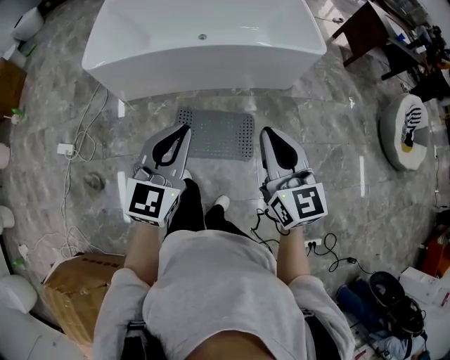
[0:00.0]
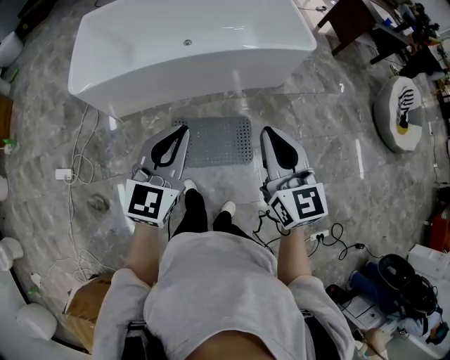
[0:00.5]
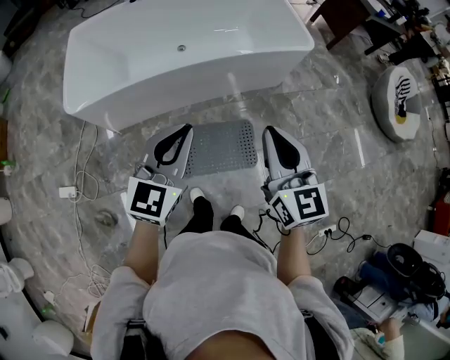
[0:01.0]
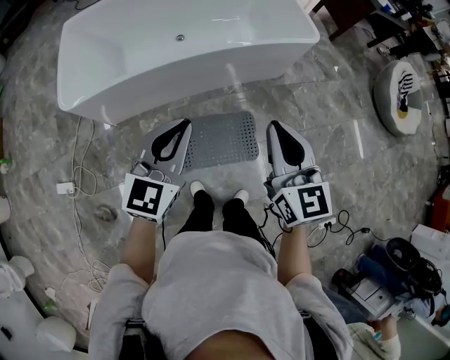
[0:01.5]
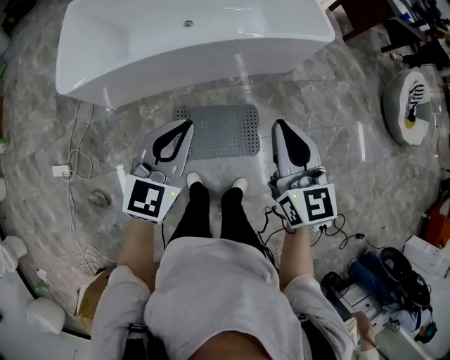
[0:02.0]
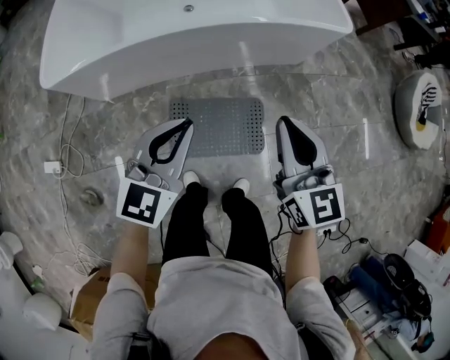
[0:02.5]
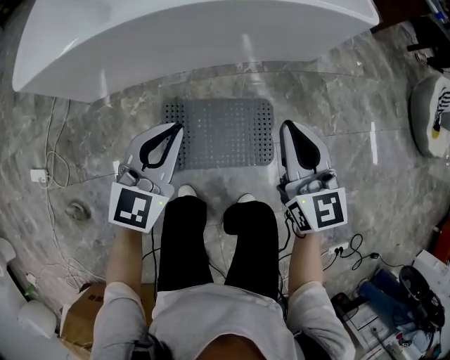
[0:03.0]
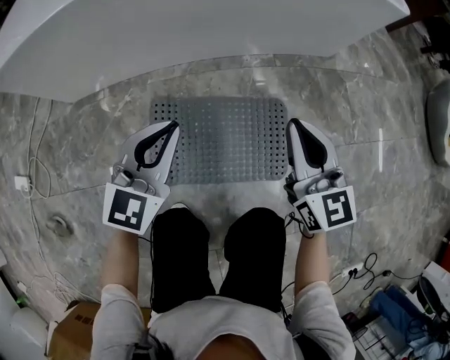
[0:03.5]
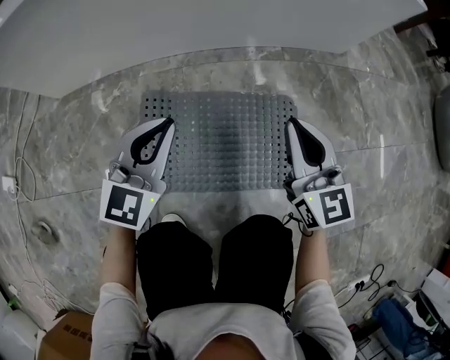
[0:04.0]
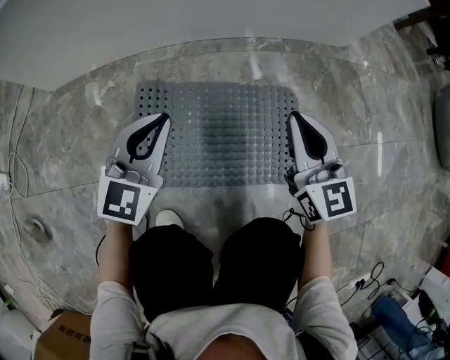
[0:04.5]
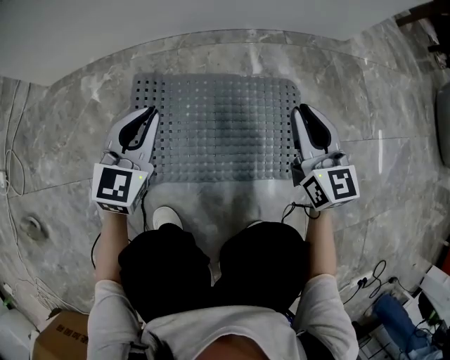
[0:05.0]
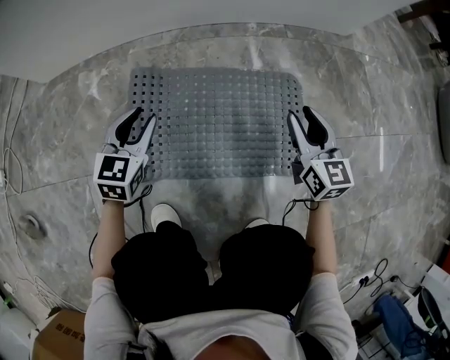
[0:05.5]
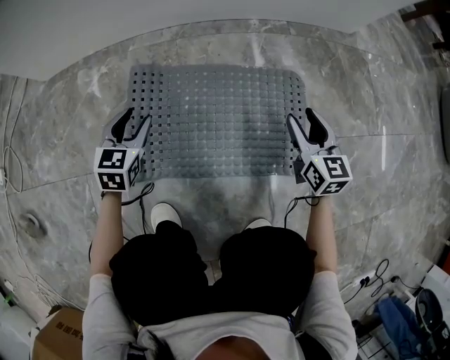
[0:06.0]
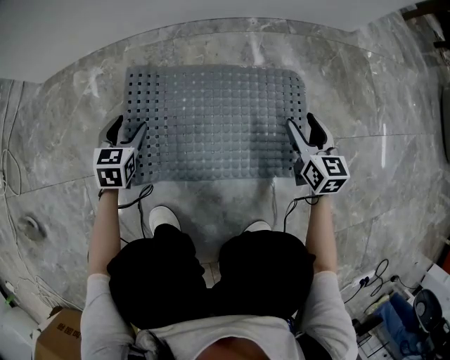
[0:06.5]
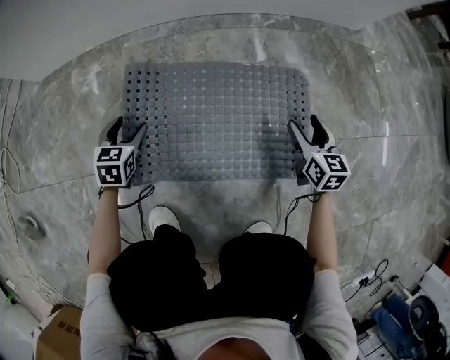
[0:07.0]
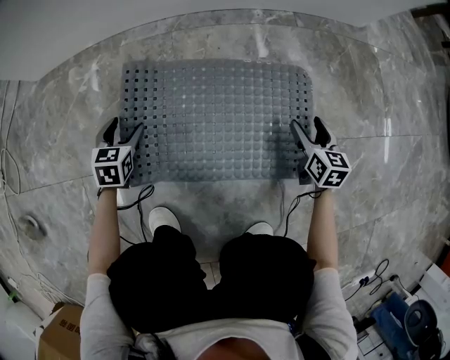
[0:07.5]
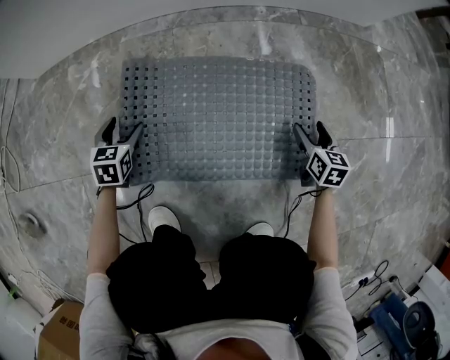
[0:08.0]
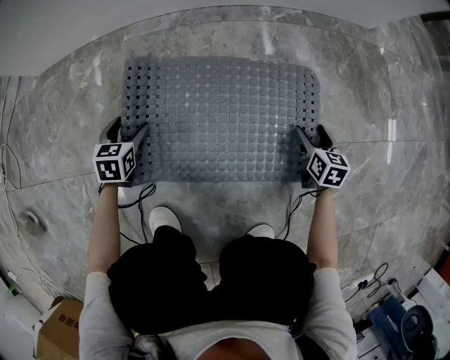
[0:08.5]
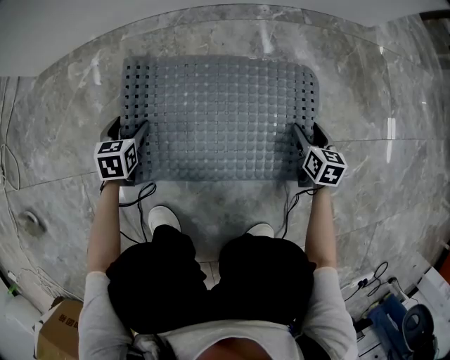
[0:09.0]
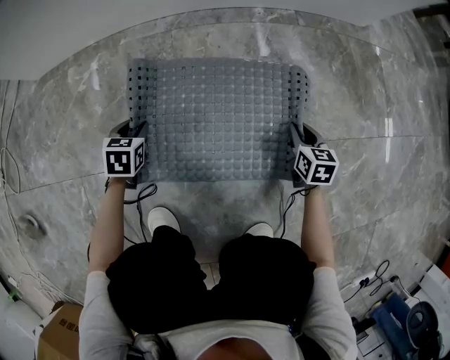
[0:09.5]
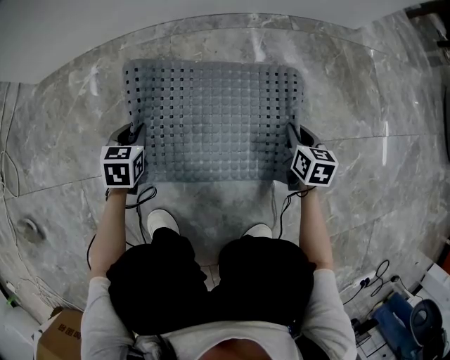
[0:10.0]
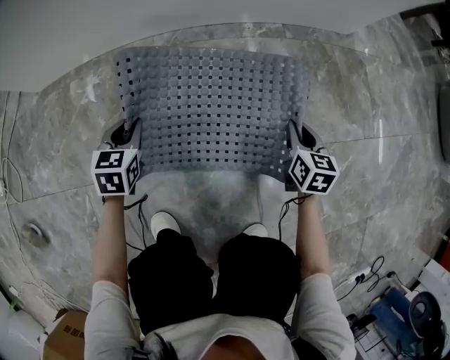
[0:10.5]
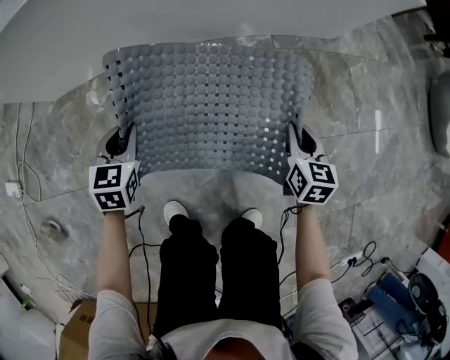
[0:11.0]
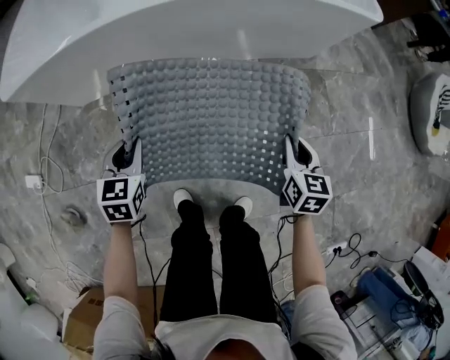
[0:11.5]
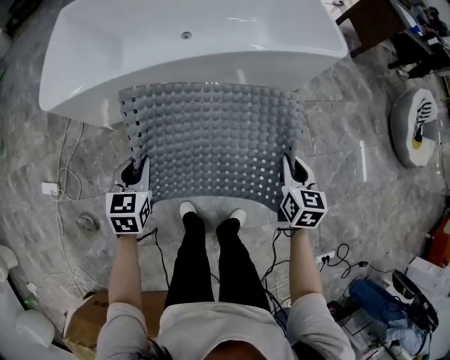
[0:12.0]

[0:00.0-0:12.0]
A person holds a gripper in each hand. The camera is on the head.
0:00.0 to 0:02.0: The left gripper travels forward, downward and to the left by some 20 cm, while the right gripper goes about 15 cm forward.
0:02.0 to 0:04.0: The two grippers go roughly 60 cm downward.
0:04.0 to 0:06.0: The left gripper heads downward and to the left, covering roughly 25 cm, turns by approximately 30 degrees, and opens its fingers; the right gripper heads downward, covering some 20 cm, and opens its fingers.
0:06.0 to 0:08.0: The right gripper heads downward and to the right, covering approximately 15 cm, and changes its angle by roughly 20 degrees; the left gripper is displaced downward and to the left by about 10 cm, and opens its fingers.
0:08.0 to 0:10.0: The left gripper goes some 5 cm to the right, and closes up, while the right gripper closes.
0:10.0 to 0:12.0: The two grippers go about 70 cm upward.

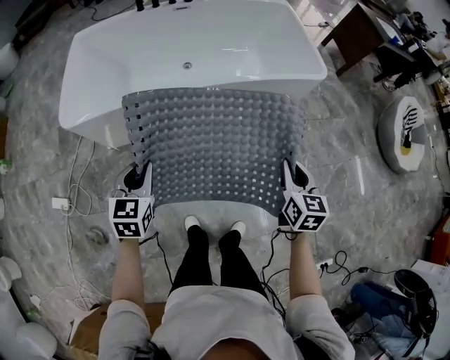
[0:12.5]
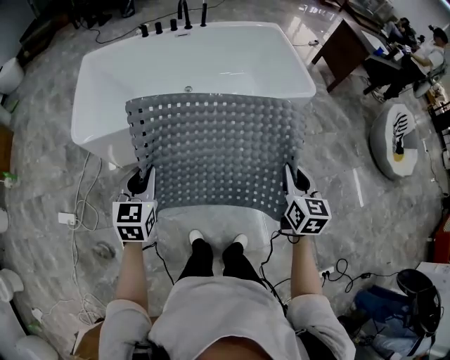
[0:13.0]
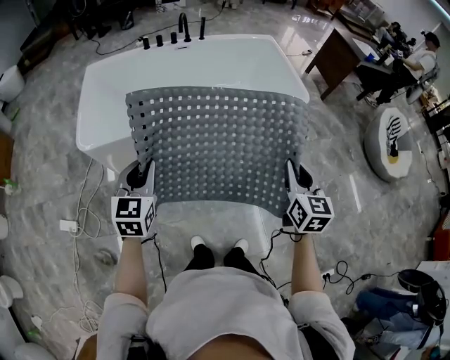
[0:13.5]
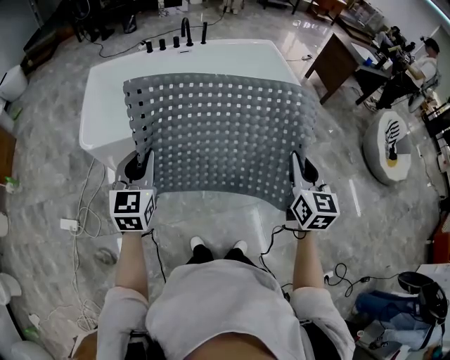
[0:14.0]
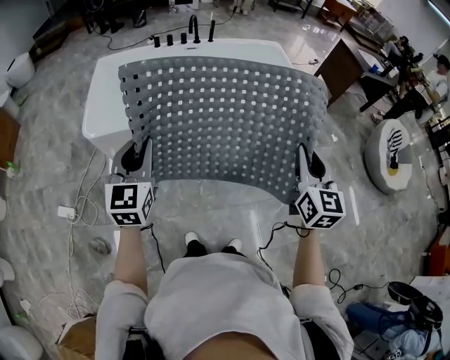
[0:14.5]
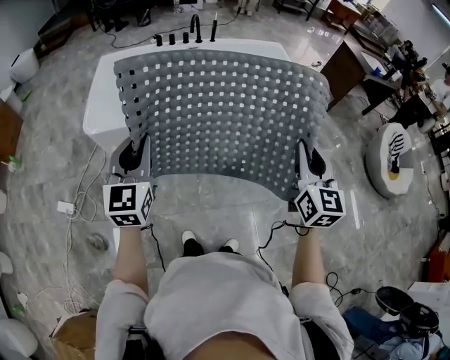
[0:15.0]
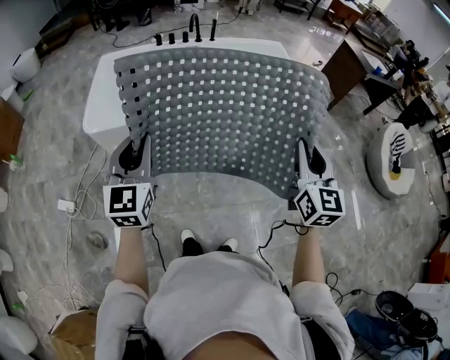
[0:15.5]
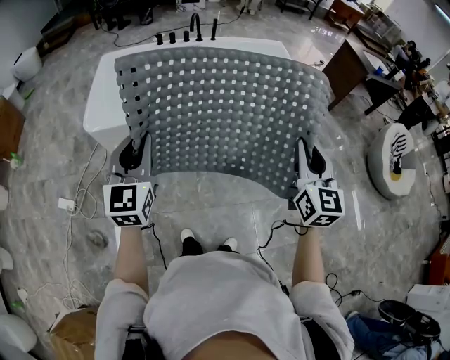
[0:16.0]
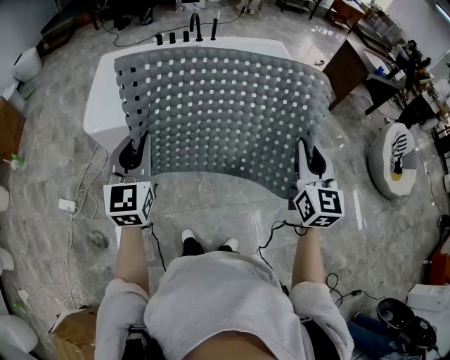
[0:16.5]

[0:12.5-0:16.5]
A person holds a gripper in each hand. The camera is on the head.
0:12.5 to 0:14.5: Both grippers move upward, approximately 25 cm. The left gripper turns by about 20 degrees; the right gripper turns by about 20 degrees.
0:14.5 to 0:16.5: The grippers move only a little.

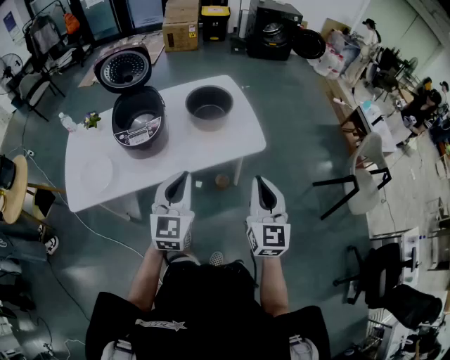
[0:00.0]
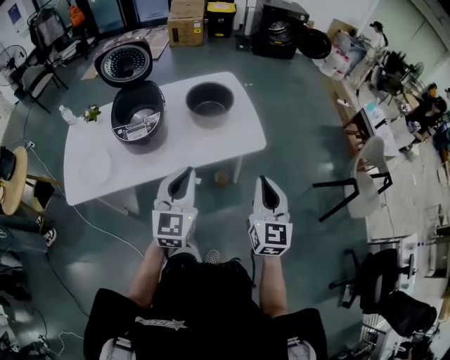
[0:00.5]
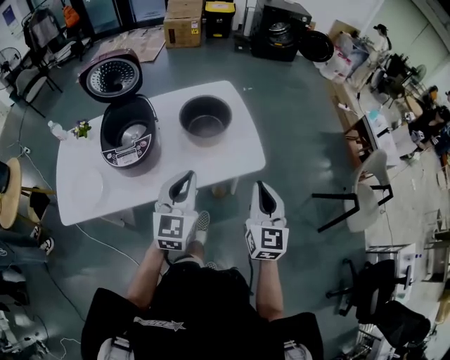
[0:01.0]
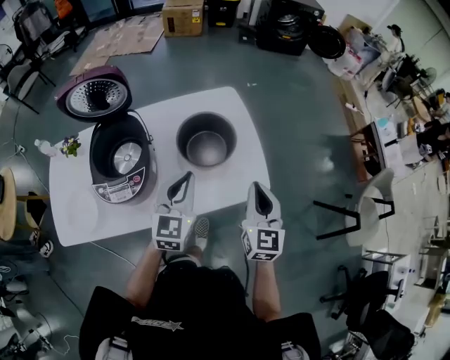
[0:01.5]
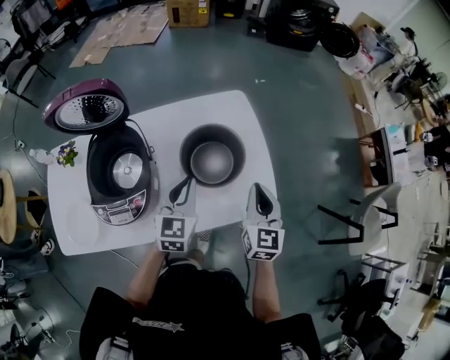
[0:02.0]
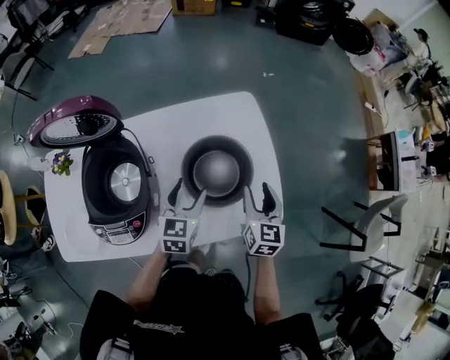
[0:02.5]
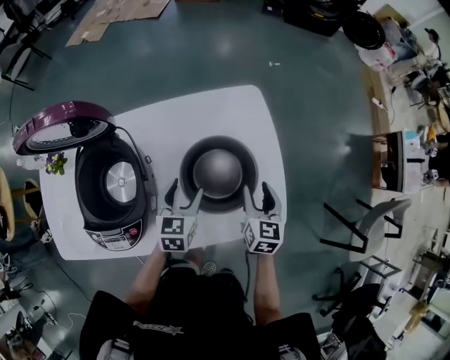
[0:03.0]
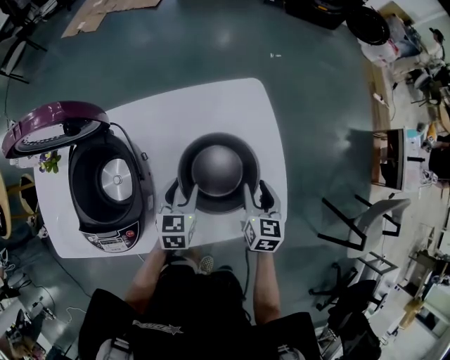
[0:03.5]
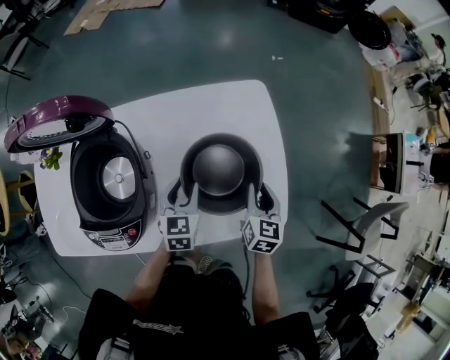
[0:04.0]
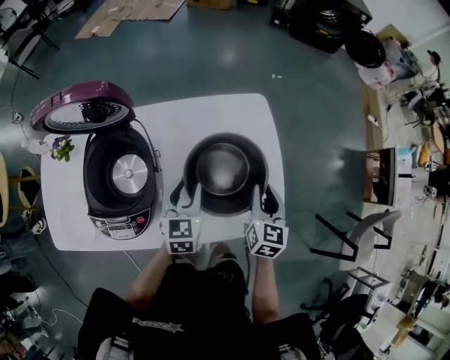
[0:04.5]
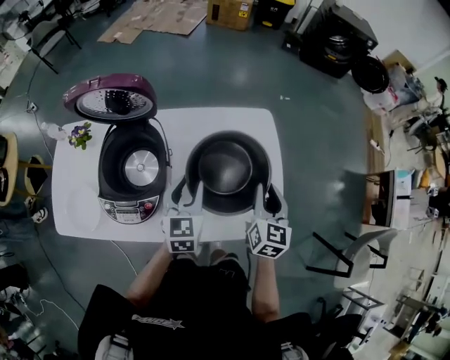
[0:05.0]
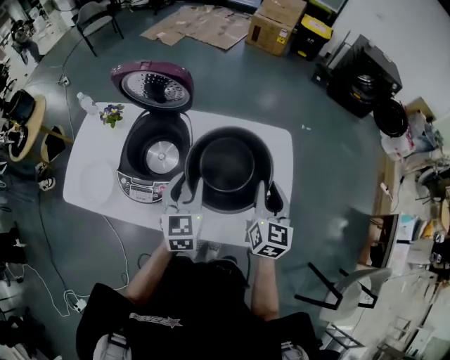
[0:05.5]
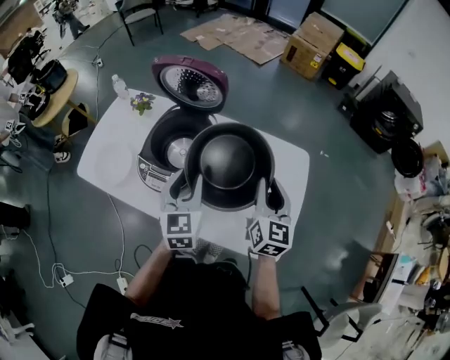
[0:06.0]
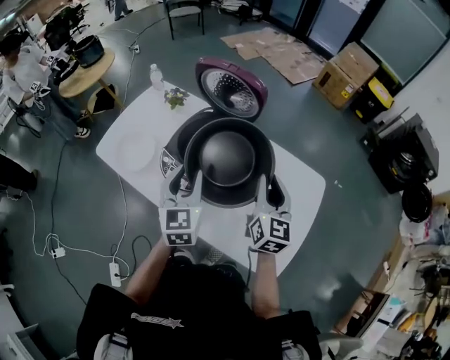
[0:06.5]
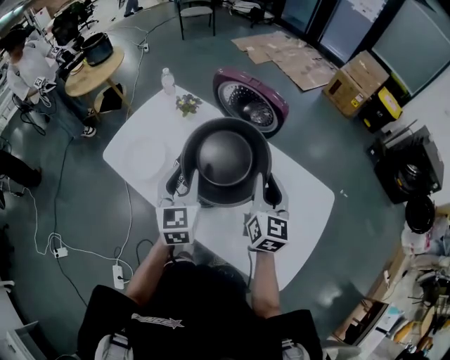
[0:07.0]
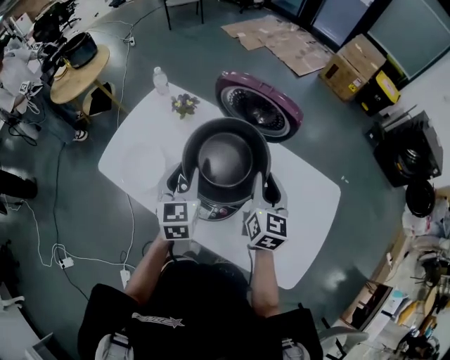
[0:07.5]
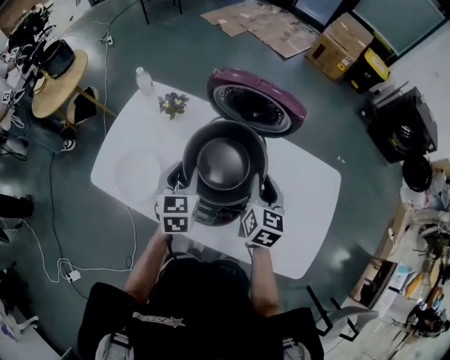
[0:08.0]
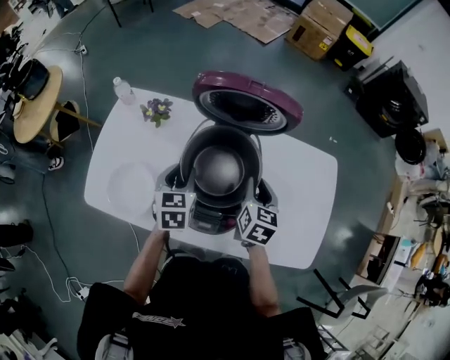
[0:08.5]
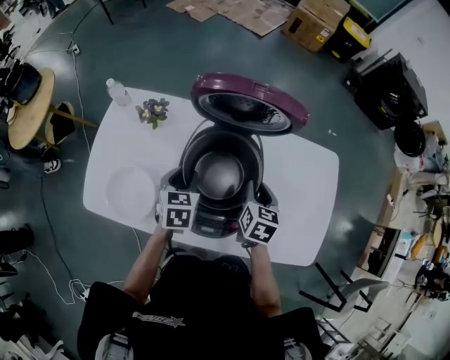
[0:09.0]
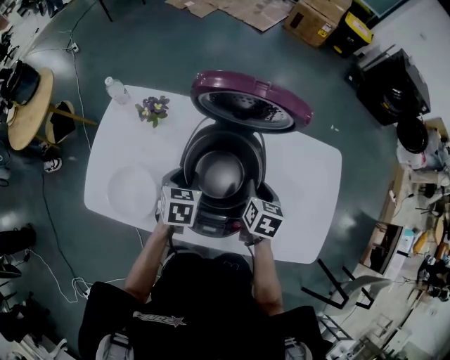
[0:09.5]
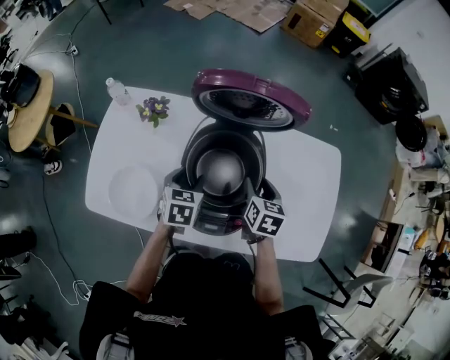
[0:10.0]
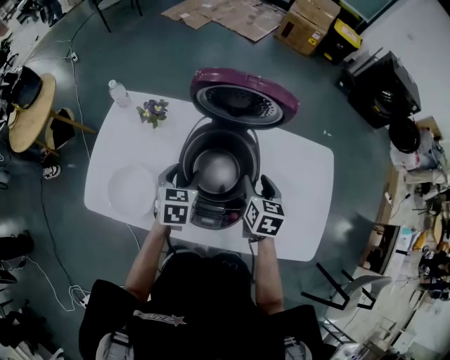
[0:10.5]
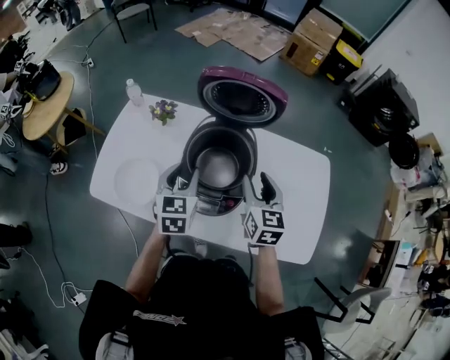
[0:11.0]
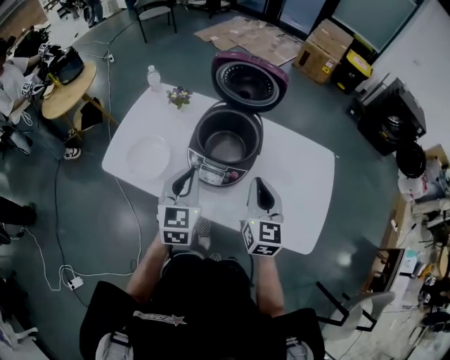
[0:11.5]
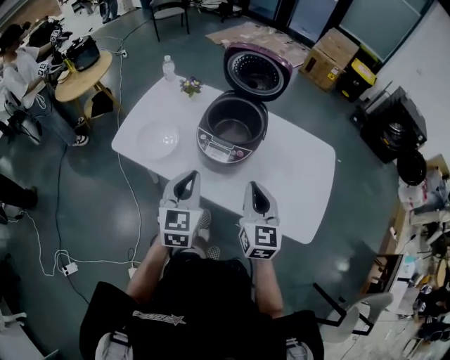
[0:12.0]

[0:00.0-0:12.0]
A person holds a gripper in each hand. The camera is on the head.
0:00.0 to 0:02.0: The two grippers go roughly 35 cm forward.
0:02.0 to 0:04.0: Both grippers travel together downward and forward, about 15 cm. The left gripper rotates some 20 degrees, and opens up, while the right gripper opens.
0:04.0 to 0:06.0: Both grippers move upward, approximately 20 cm. The right gripper changes its angle by approximately 40 degrees. Meanwhile the left gripper swivels approximately 40 degrees.
0:06.0 to 0:08.0: The two grippers go roughly 25 cm to the left and forward.
0:08.0 to 0:10.0: The two grippers go about 10 cm downward. The right gripper turns by approximately 20 degrees, and opens. The left gripper swivels roughly 30 degrees.
0:10.0 to 0:12.0: Both grippers travel together backward and upward, about 30 cm. The left gripper tilts its fingers approximately 30 degrees upward, and closes up. The right gripper tips its fingers upward by about 30 degrees, and closes its fingers.
